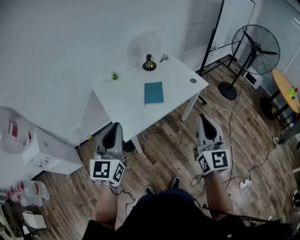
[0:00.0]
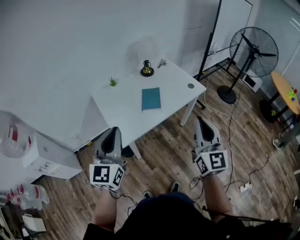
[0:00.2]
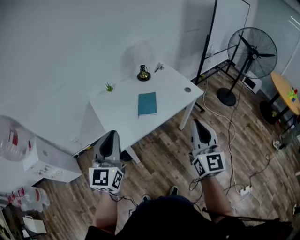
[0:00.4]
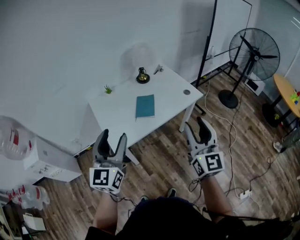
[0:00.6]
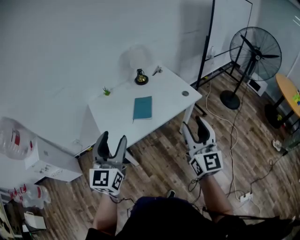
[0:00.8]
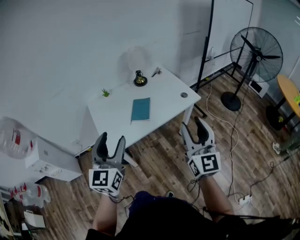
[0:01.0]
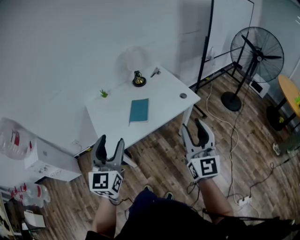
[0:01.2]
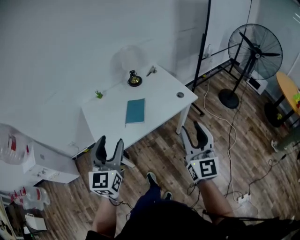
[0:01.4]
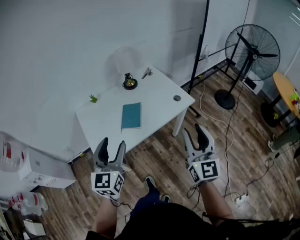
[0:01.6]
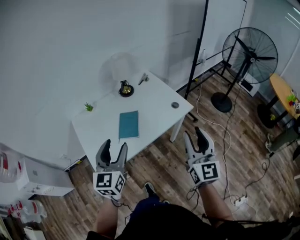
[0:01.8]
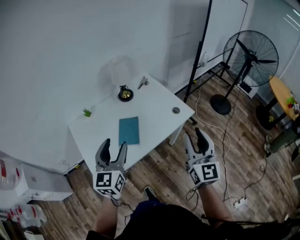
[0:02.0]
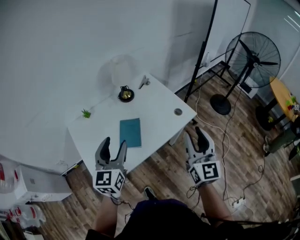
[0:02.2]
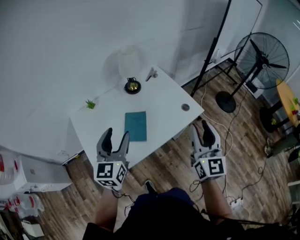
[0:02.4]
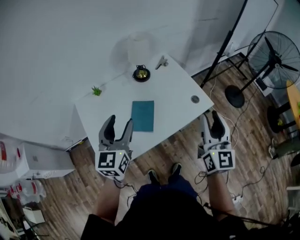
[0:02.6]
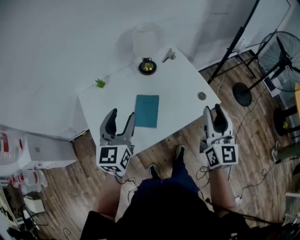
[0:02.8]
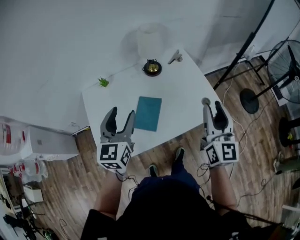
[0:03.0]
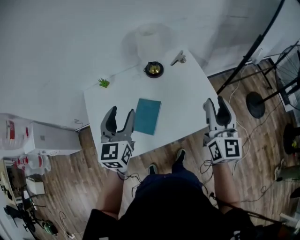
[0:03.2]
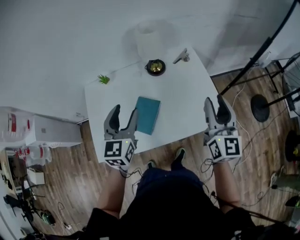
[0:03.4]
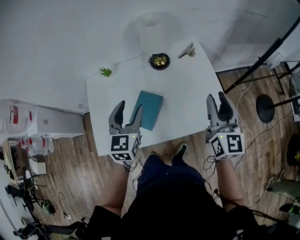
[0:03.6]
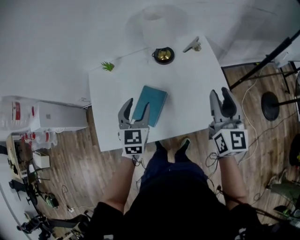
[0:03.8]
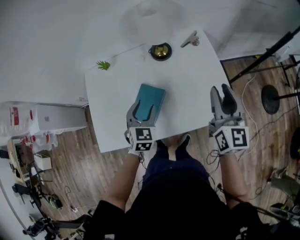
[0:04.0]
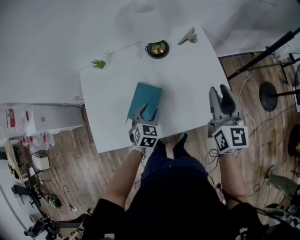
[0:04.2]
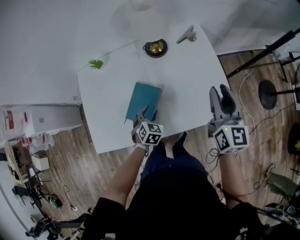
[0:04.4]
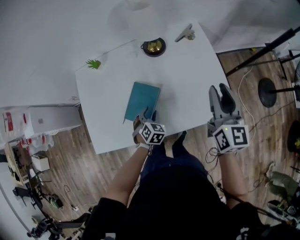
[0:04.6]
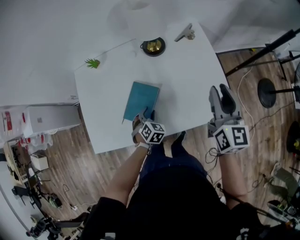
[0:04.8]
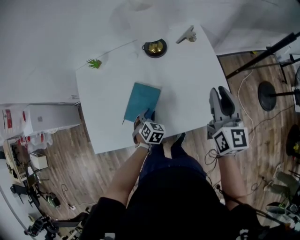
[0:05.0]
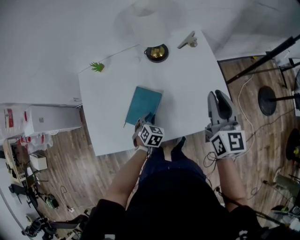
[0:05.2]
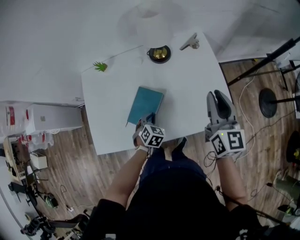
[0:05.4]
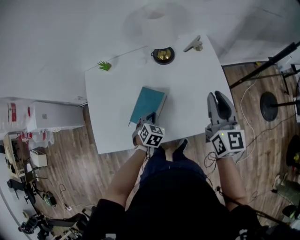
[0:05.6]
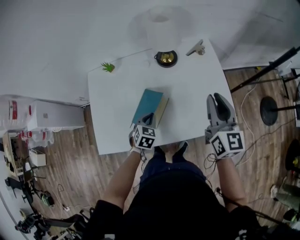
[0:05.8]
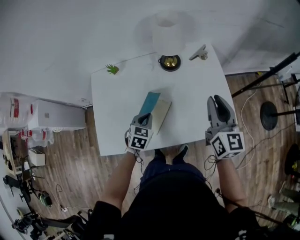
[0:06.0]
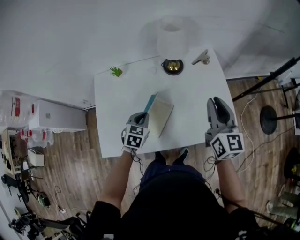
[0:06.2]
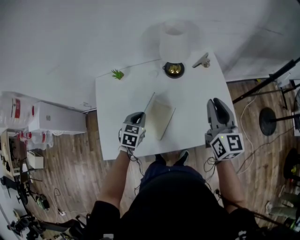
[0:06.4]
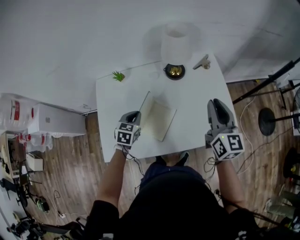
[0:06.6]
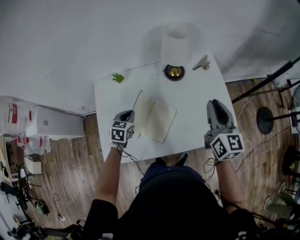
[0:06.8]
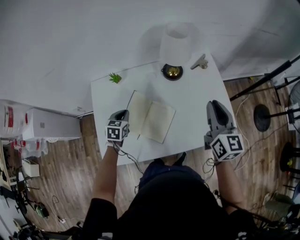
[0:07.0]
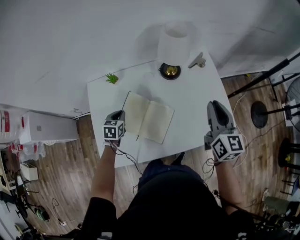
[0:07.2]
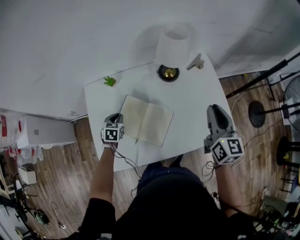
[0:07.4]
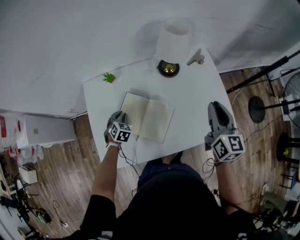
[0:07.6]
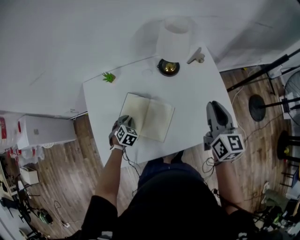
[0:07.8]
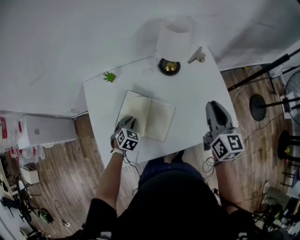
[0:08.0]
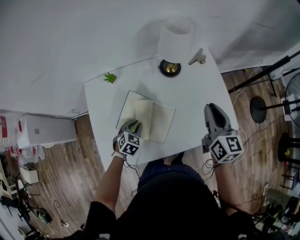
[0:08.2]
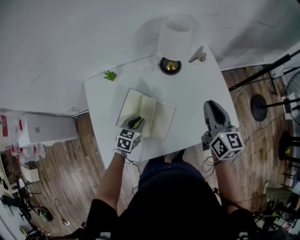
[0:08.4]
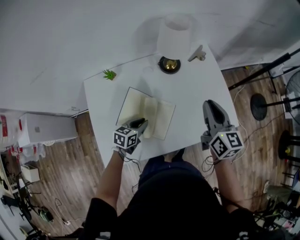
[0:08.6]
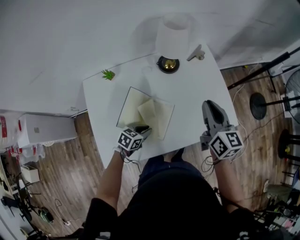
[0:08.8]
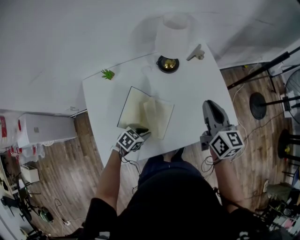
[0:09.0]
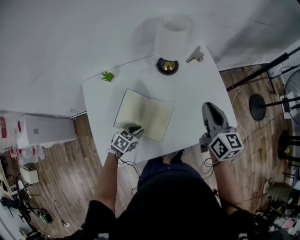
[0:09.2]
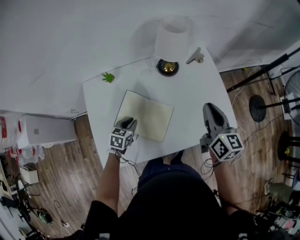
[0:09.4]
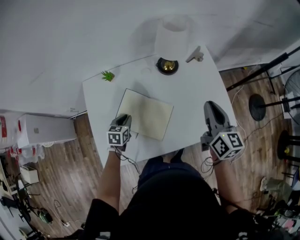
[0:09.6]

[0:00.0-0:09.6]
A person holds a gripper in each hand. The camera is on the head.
0:00.0 to 0:01.6: Both grippers travel together to the right and forward, approximately 25 cm. The right gripper opens up; the left gripper opens.
0:01.6 to 0:03.2: Both grippers move forward, some 35 cm.
0:03.2 to 0:04.8: The left gripper is displaced downward by some 40 cm, points its fingers roughly 50 degrees further downward, and closes up; the right gripper shifts roughly 15 cm downward and forward.
0:04.8 to 0:06.4: The left gripper heads upward and to the left, covering about 20 cm, rotates some 30 degrees, and closes. The right gripper heads to the left, covering about 10 cm.
0:06.4 to 0:08.0: The right gripper shifts by roughly 5 cm; the left gripper heads downward and to the left, covering roughly 10 cm, and changes its angle by roughly 20 degrees.
0:08.0 to 0:09.6: The left gripper turns by some 30 degrees.

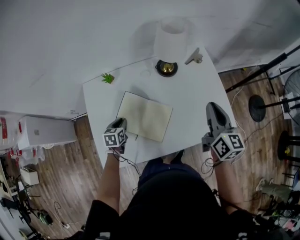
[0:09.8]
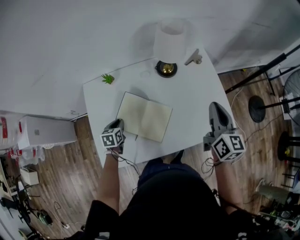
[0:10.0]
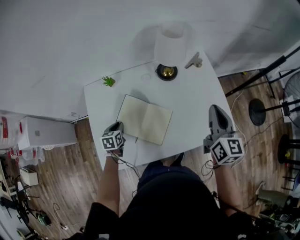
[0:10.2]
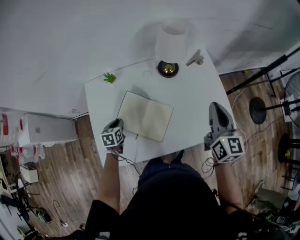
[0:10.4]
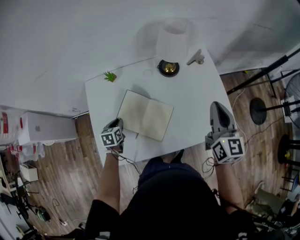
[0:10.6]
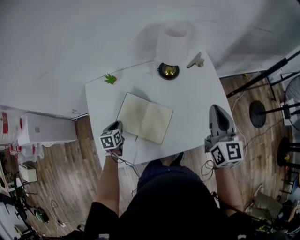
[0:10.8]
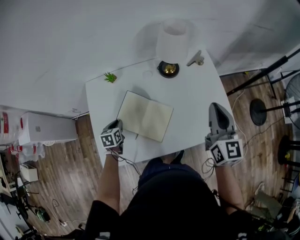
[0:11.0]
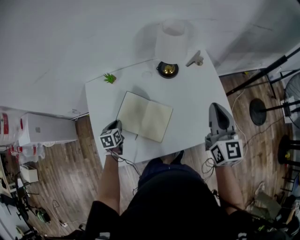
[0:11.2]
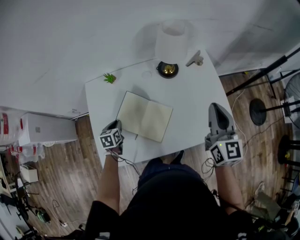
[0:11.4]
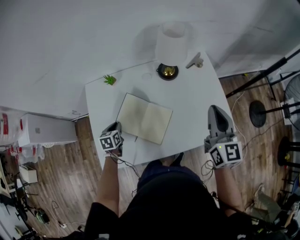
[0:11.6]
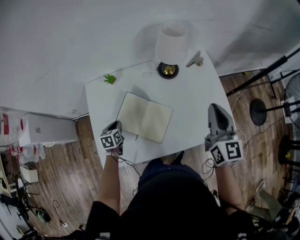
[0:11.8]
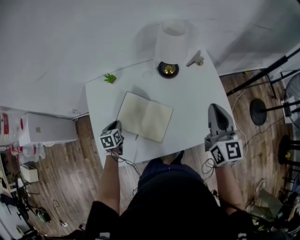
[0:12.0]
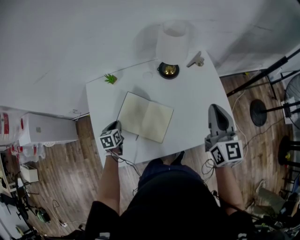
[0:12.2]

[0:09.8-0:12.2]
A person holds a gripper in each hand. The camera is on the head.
0:09.8 to 0:11.0: The grippers make only small movements.
0:11.0 to 0:12.2: Neither gripper changes place.

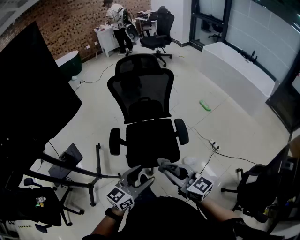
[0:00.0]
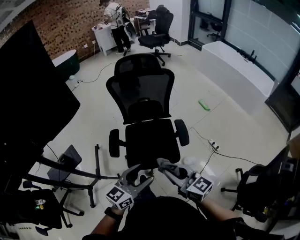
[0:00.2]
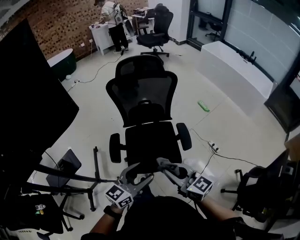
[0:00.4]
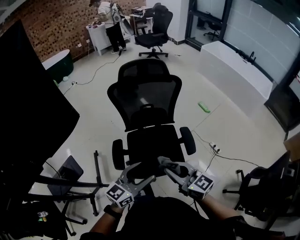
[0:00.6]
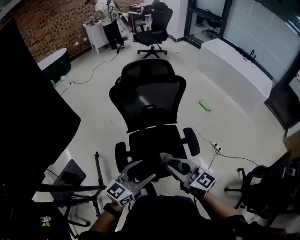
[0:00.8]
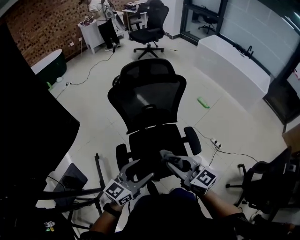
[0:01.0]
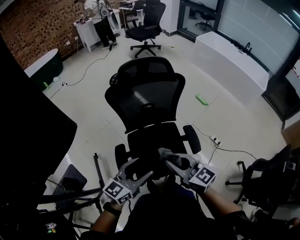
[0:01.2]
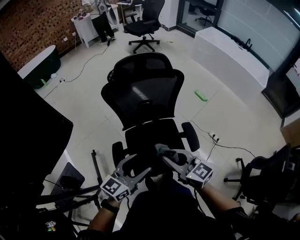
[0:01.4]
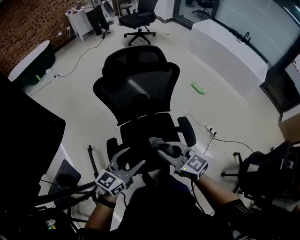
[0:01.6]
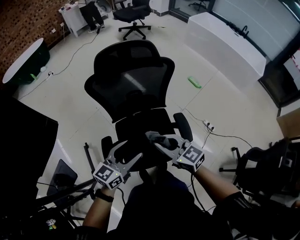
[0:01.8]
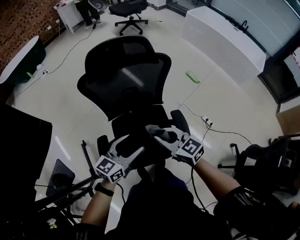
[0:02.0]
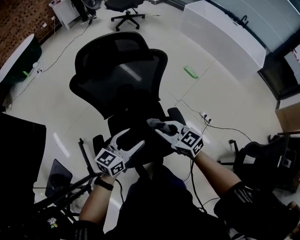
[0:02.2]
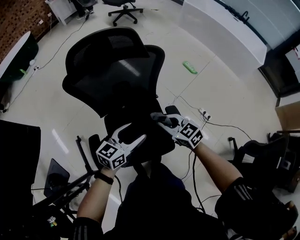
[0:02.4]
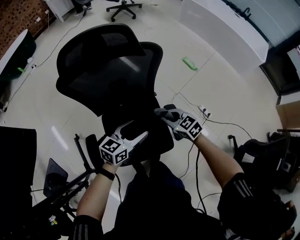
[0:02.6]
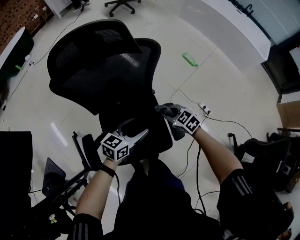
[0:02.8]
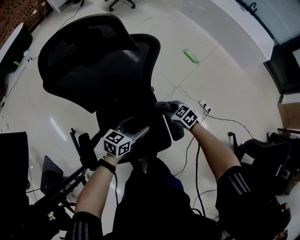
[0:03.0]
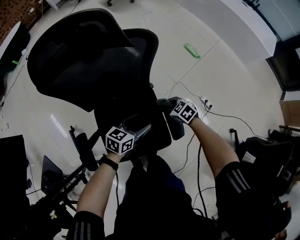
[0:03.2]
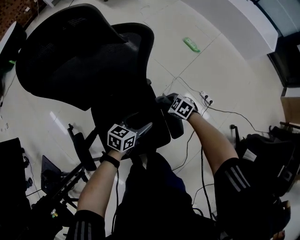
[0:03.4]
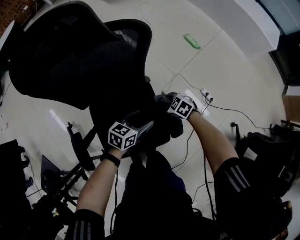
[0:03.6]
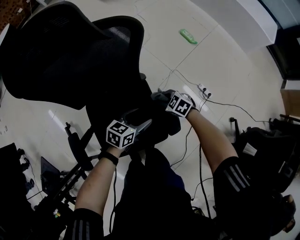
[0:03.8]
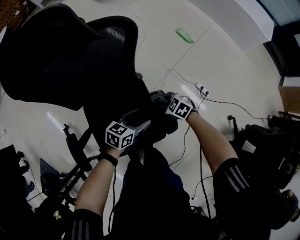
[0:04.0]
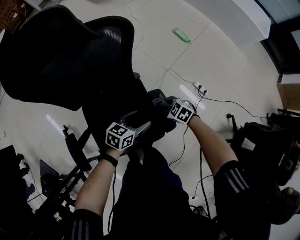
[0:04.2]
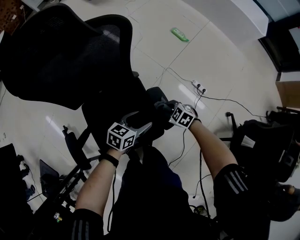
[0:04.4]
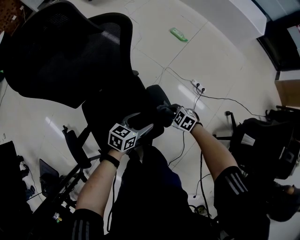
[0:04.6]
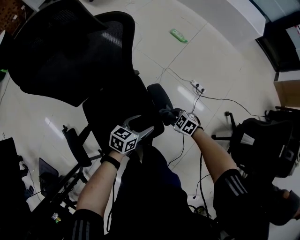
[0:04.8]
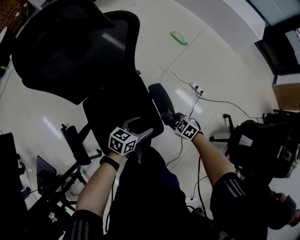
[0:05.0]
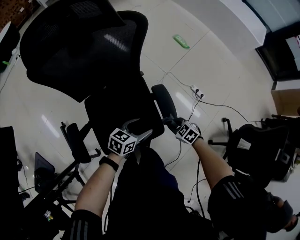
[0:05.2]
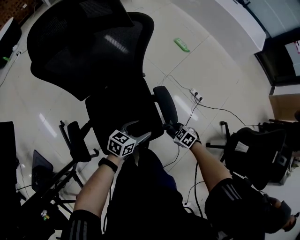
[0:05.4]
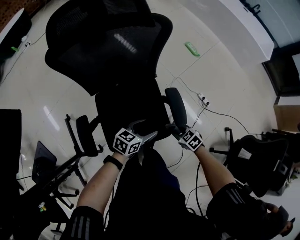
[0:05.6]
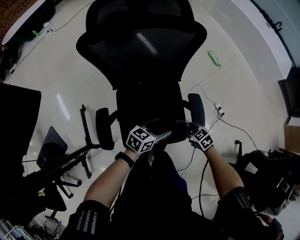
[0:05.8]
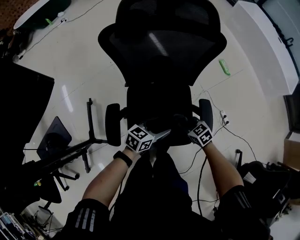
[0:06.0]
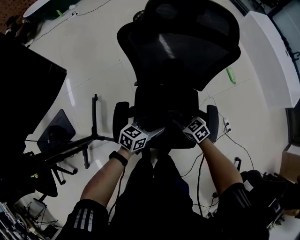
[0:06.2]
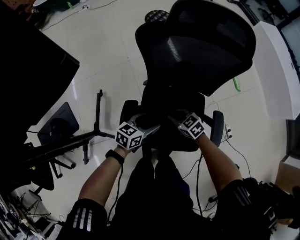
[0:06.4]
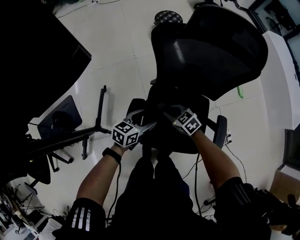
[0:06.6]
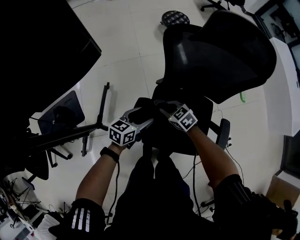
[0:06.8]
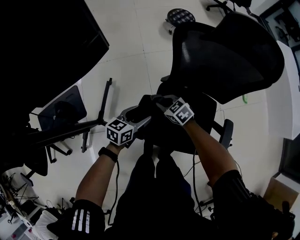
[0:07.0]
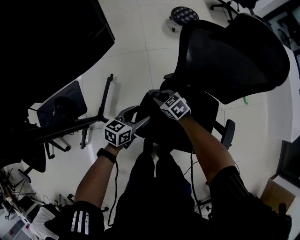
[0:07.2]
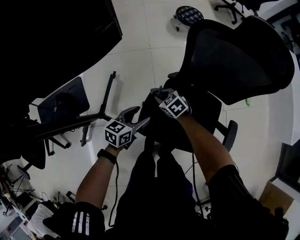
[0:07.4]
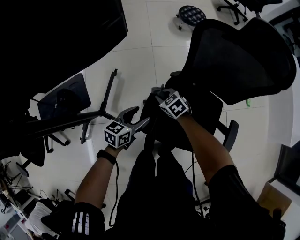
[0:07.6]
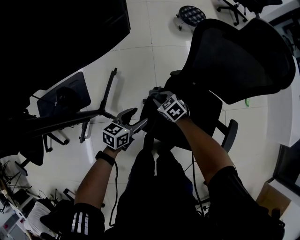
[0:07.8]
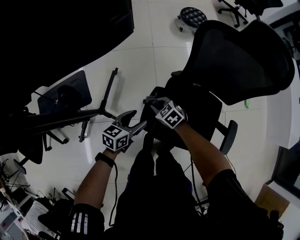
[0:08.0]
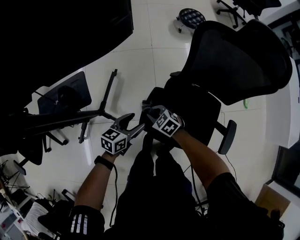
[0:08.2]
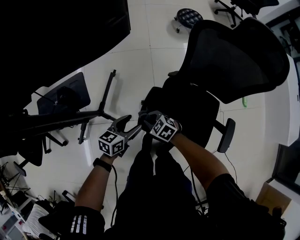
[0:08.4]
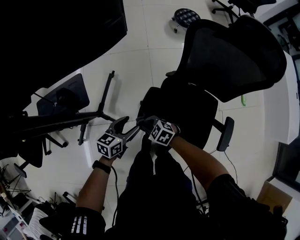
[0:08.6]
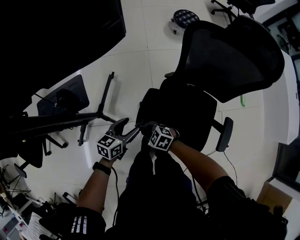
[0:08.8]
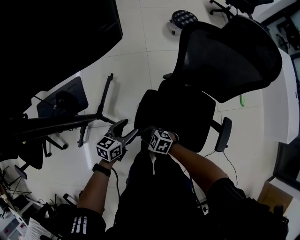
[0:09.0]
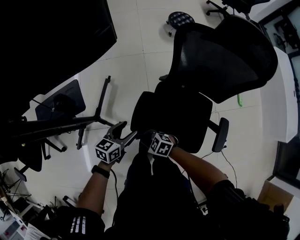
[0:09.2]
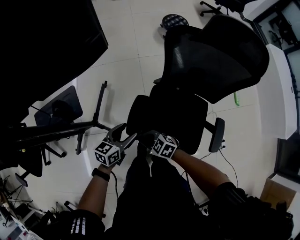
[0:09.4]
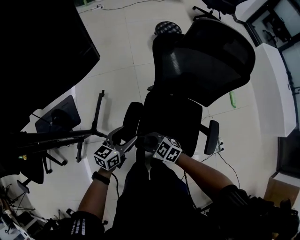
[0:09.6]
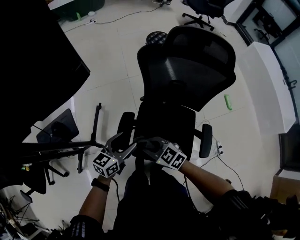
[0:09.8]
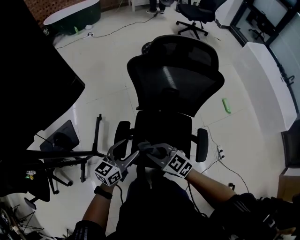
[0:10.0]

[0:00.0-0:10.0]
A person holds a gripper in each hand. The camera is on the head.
0:00.0 to 0:01.4: Both grippers travel together forward and to the left, roughly 25 cm.
0:01.4 to 0:02.8: The grippers both shift downward, forward and to the right by roughly 35 cm. The left gripper swivels some 20 degrees; the right gripper angles its fingers downward, by roughly 40 degrees.
0:02.8 to 0:04.2: Both grippers move downward, approximately 15 cm.
0:04.2 to 0:05.8: The left gripper ends up roughly 15 cm from where it was. The right gripper changes place by approximately 15 cm.
0:05.8 to 0:07.2: The right gripper shifts by roughly 50 cm, and turns by about 30 degrees, while the left gripper ends up approximately 35 cm from where it was, and changes its angle by some 40 degrees.
0:07.2 to 0:08.6: The left gripper ends up approximately 10 cm from where it was. Meanwhile the right gripper moves some 20 cm, and changes its angle by approximately 20 degrees.
0:08.6 to 0:10.0: The grippers both shift upward by approximately 20 cm. The right gripper turns by about 30 degrees.

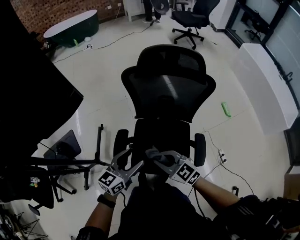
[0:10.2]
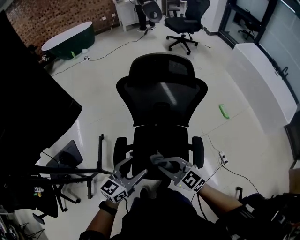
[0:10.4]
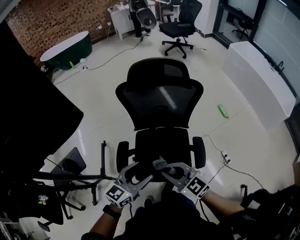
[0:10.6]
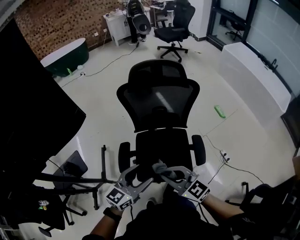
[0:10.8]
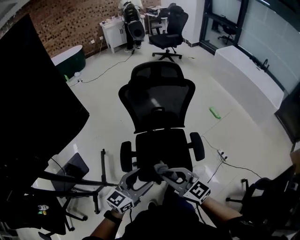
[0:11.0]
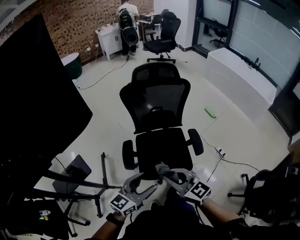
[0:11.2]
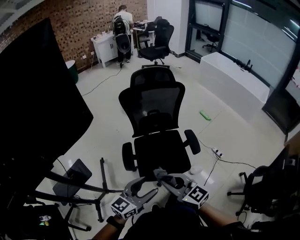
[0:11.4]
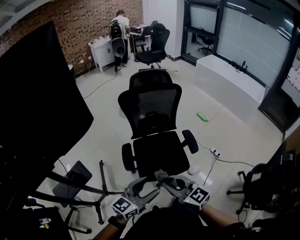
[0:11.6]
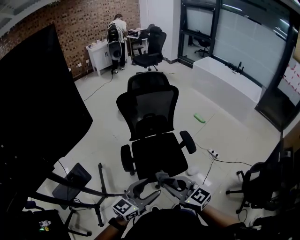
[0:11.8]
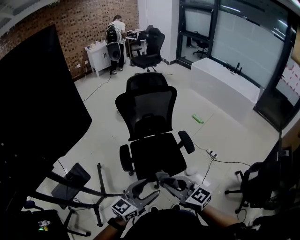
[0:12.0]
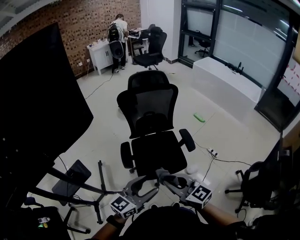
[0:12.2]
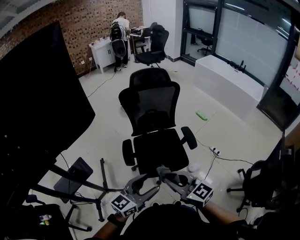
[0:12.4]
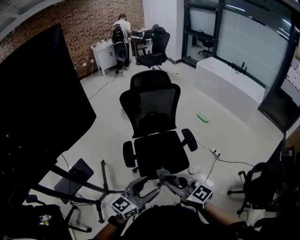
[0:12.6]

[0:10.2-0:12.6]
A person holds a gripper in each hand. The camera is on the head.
0:10.2 to 0:11.4: The right gripper heads backward and upward, covering roughly 25 cm, and swivels approximately 30 degrees; the left gripper goes roughly 25 cm backward, and changes its angle by about 30 degrees.
0:11.4 to 0:12.6: The two grippers go about 10 cm backward.
